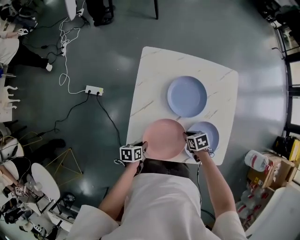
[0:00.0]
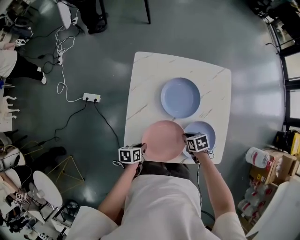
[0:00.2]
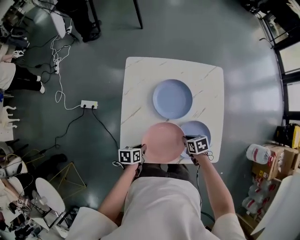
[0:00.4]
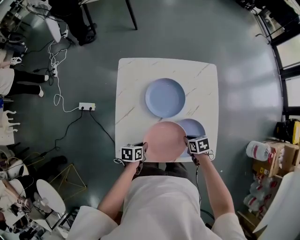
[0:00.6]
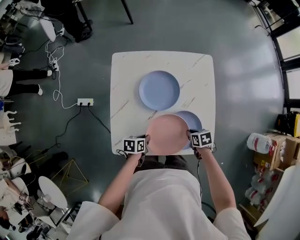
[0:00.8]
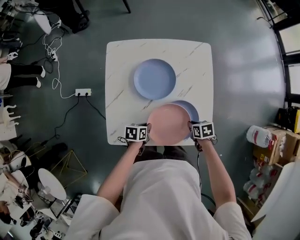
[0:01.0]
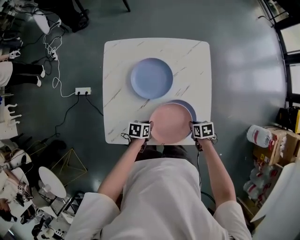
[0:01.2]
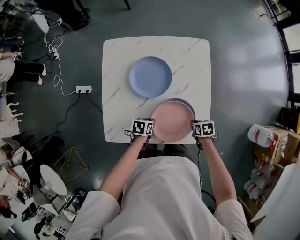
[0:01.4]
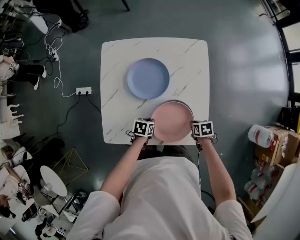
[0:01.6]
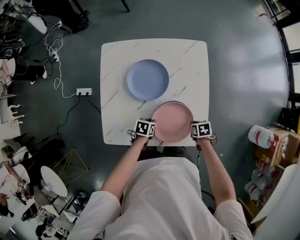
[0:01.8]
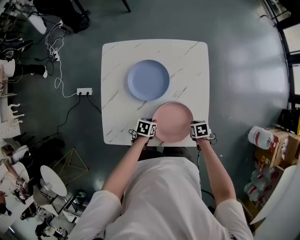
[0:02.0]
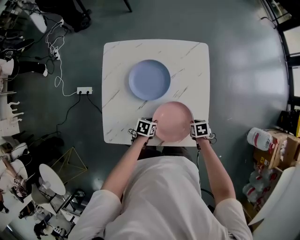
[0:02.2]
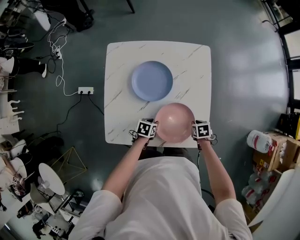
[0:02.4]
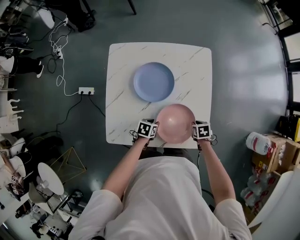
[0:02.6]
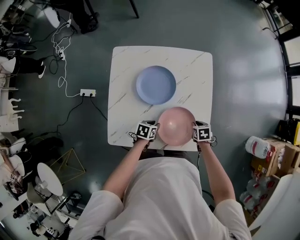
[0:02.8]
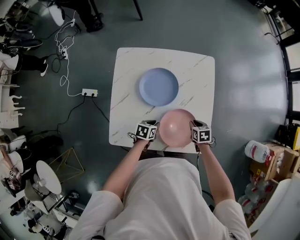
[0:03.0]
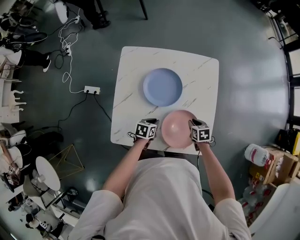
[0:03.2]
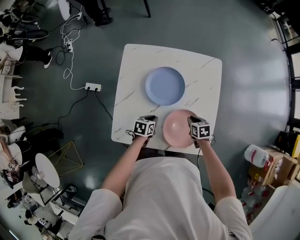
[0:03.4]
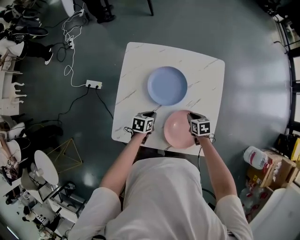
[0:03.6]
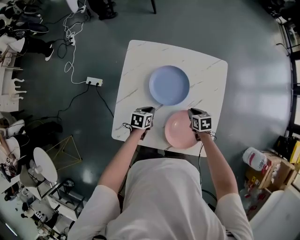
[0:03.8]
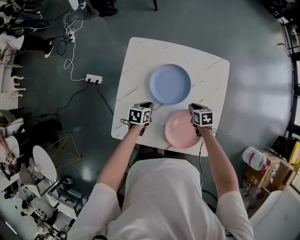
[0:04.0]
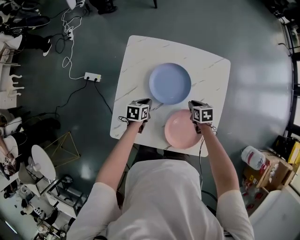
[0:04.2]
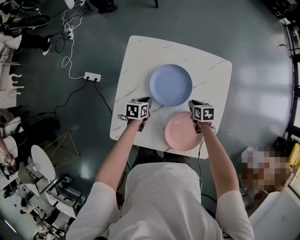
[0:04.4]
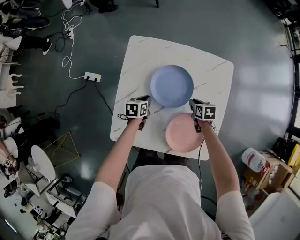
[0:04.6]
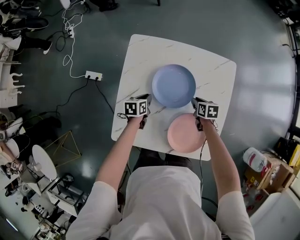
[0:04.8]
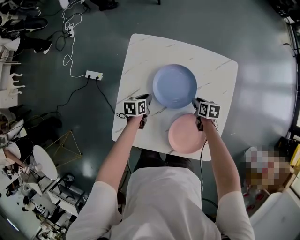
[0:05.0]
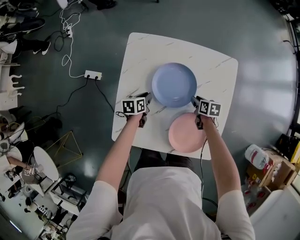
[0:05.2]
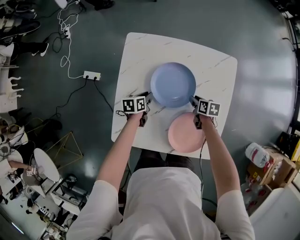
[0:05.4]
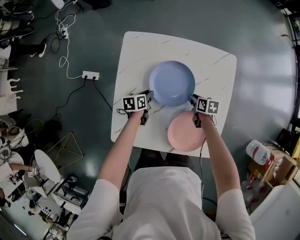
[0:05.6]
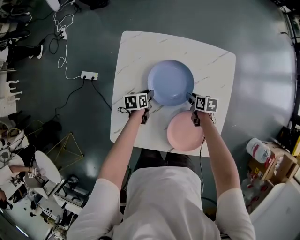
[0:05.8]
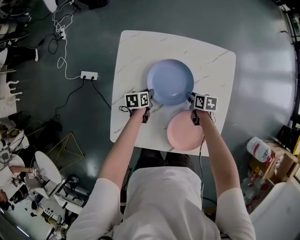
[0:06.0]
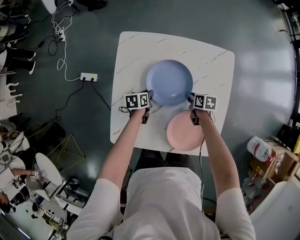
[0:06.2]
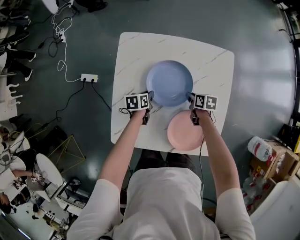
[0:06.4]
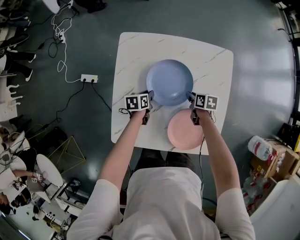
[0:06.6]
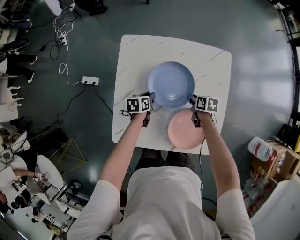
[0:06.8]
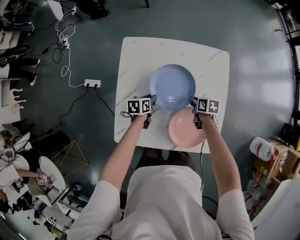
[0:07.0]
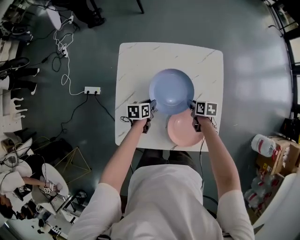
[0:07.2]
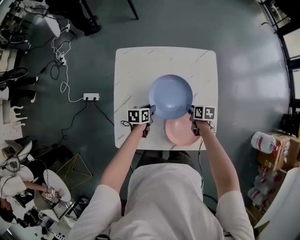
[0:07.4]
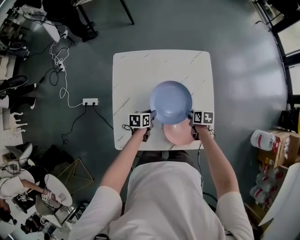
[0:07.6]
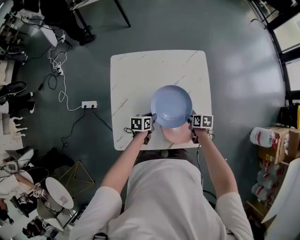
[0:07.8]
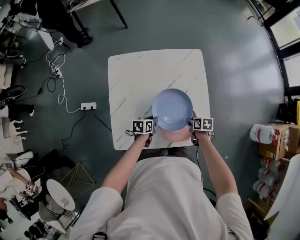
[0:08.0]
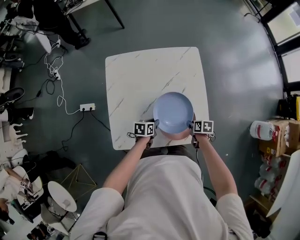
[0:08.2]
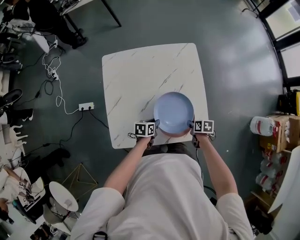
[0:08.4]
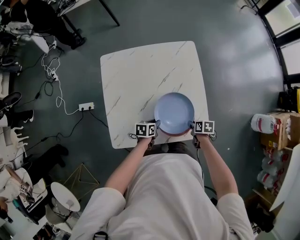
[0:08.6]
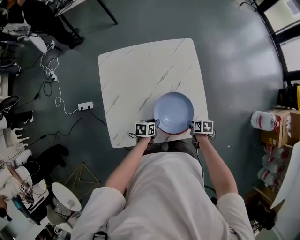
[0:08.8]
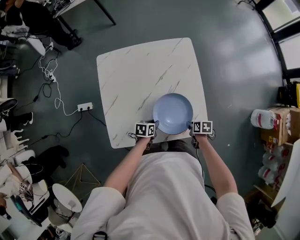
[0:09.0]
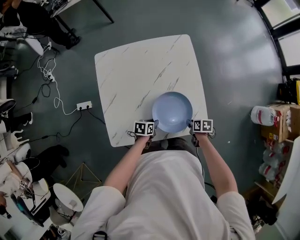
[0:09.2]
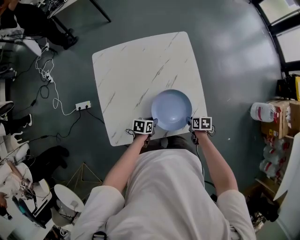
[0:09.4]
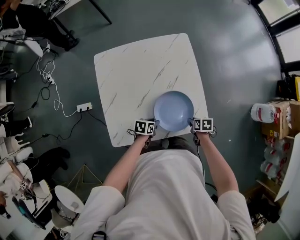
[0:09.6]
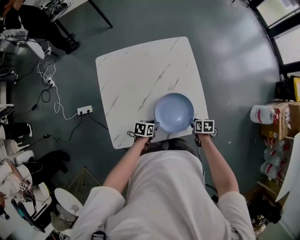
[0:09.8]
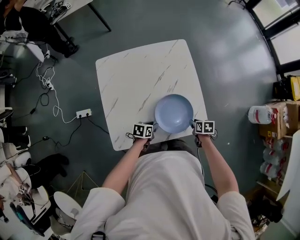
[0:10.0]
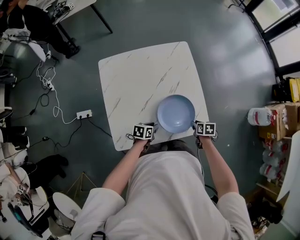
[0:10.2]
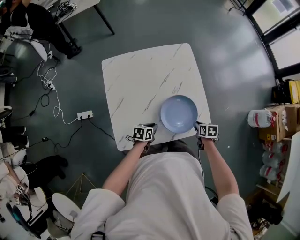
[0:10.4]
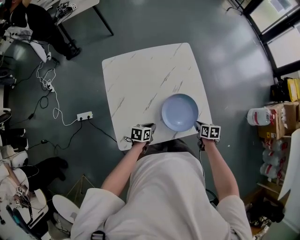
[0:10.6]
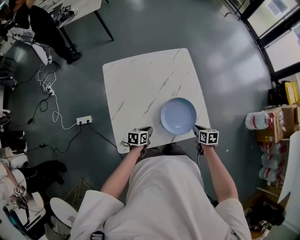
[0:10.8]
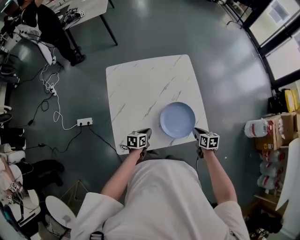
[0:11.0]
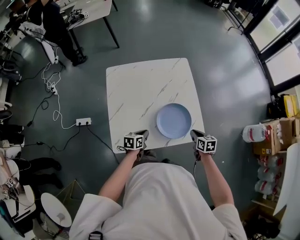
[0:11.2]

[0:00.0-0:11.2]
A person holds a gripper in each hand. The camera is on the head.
0:00.0 to 0:01.6: The right gripper ends up approximately 25 cm from where it was, while the left gripper moves approximately 25 cm, and turns by roughly 30 degrees.
0:01.6 to 0:03.2: The left gripper moves some 5 cm. The right gripper shifts by about 10 cm.
0:03.2 to 0:04.8: Both grippers travel together forward and to the left, about 15 cm.
0:04.8 to 0:06.4: The left gripper ends up roughly 5 cm from where it was.
0:06.4 to 0:08.0: The right gripper goes some 20 cm backward and to the right; the left gripper is displaced backward, to the right and upward by roughly 20 cm.
0:08.0 to 0:09.6: The left gripper shifts by approximately 10 cm; the right gripper shifts by roughly 10 cm.
0:09.6 to 0:11.2: The right gripper goes roughly 10 cm upward, rotates about 30 degrees, and closes up, while the left gripper travels upward, to the left and backward by some 10 cm, and closes its fingers.

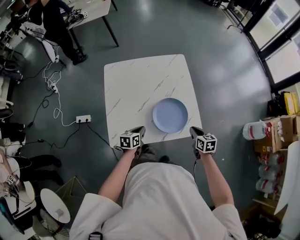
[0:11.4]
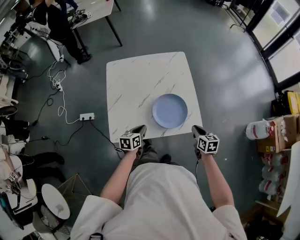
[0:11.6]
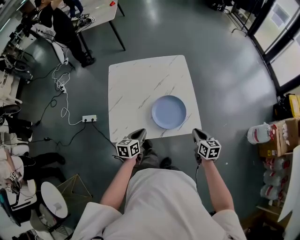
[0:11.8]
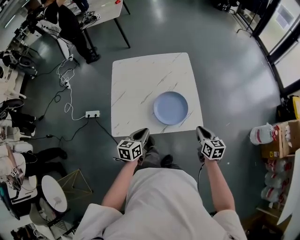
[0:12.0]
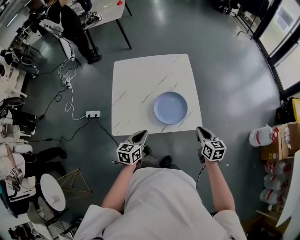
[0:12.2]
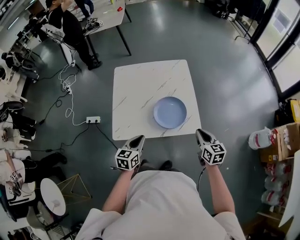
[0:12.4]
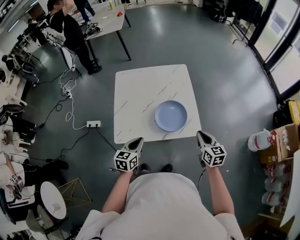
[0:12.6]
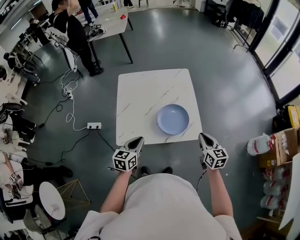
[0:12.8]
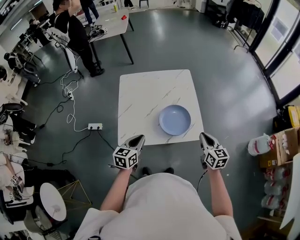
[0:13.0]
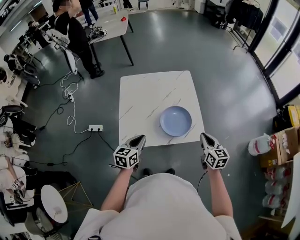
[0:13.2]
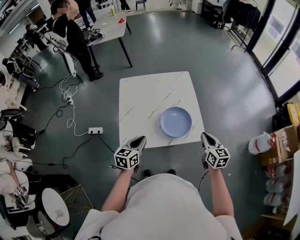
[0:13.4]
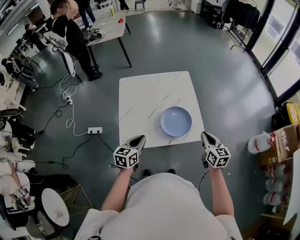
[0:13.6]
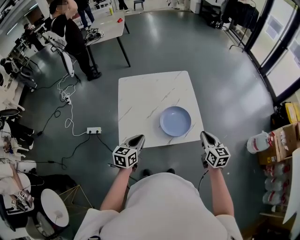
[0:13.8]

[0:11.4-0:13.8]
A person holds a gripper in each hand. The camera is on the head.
0:11.4 to 0:12.6: Both grippers travel together upward and backward, about 20 cm. The right gripper swivels approximately 20 degrees, while the left gripper rotates roughly 20 degrees.
0:12.6 to 0:13.8: The left gripper heads to the left, covering some 5 cm, while the right gripper ends up some 5 cm from where it was.

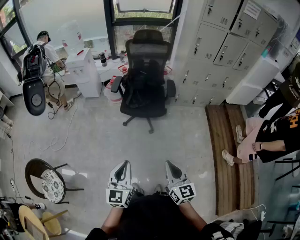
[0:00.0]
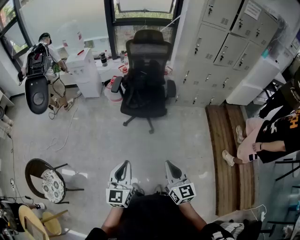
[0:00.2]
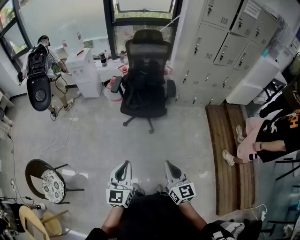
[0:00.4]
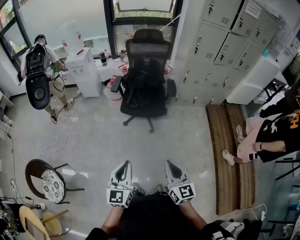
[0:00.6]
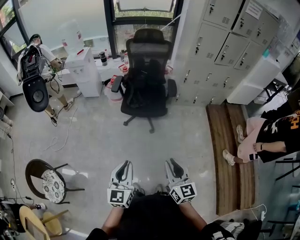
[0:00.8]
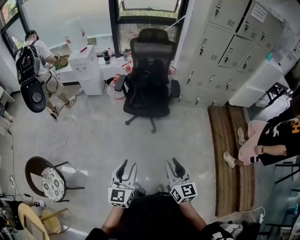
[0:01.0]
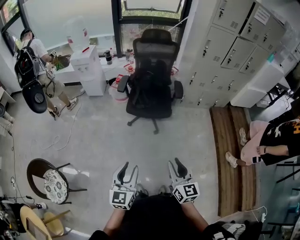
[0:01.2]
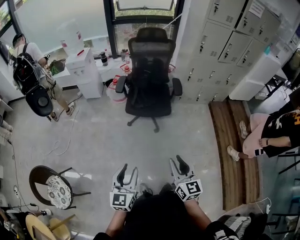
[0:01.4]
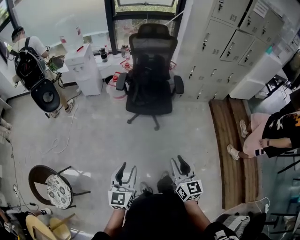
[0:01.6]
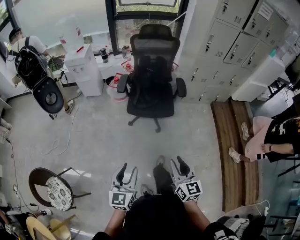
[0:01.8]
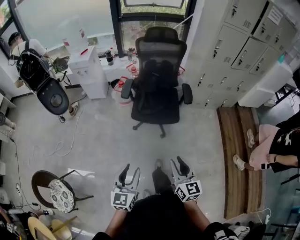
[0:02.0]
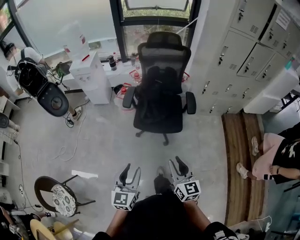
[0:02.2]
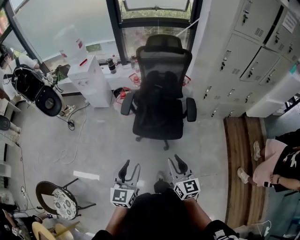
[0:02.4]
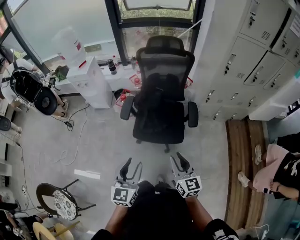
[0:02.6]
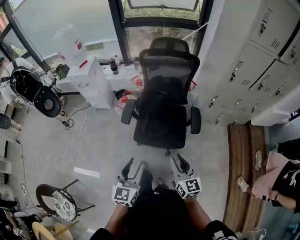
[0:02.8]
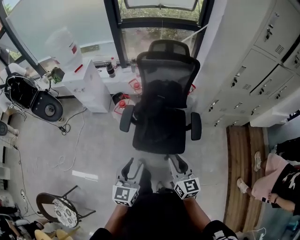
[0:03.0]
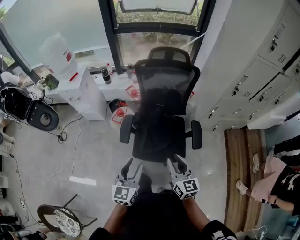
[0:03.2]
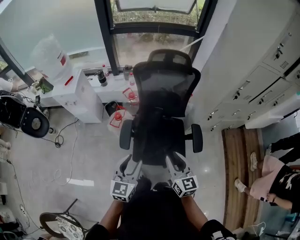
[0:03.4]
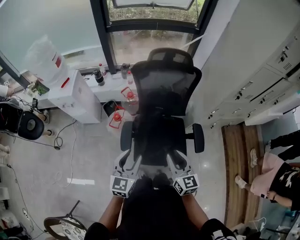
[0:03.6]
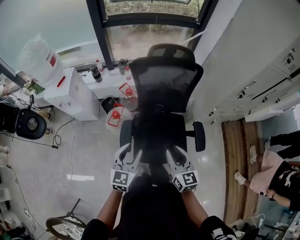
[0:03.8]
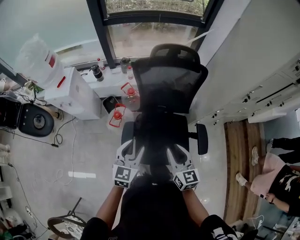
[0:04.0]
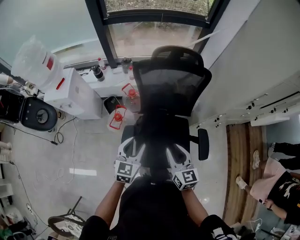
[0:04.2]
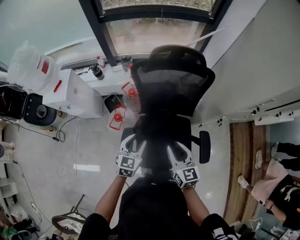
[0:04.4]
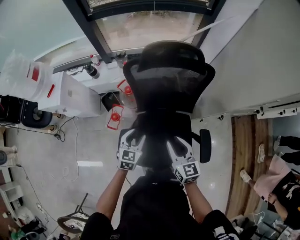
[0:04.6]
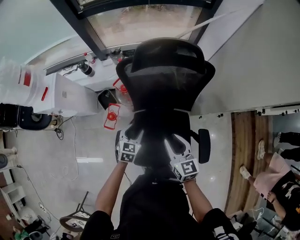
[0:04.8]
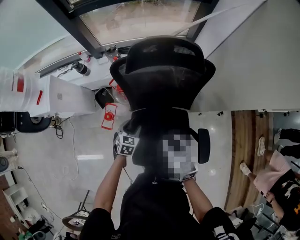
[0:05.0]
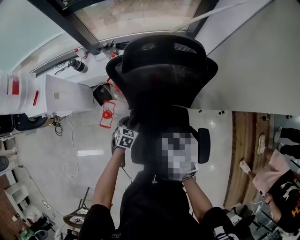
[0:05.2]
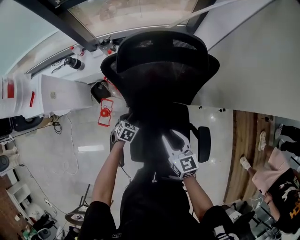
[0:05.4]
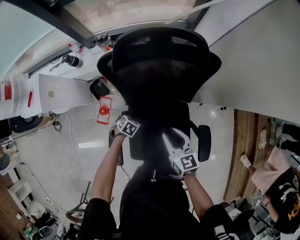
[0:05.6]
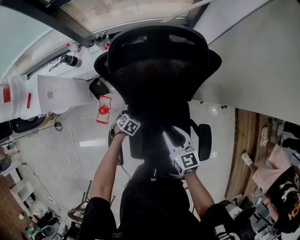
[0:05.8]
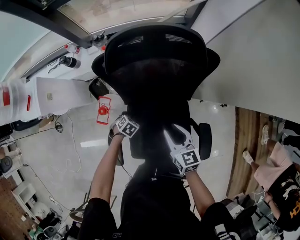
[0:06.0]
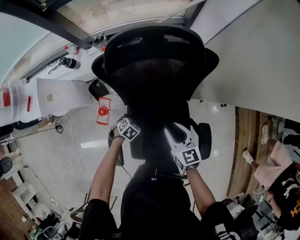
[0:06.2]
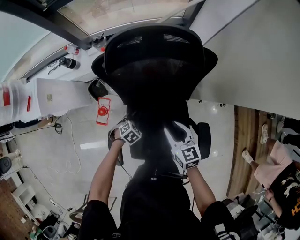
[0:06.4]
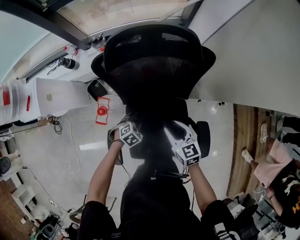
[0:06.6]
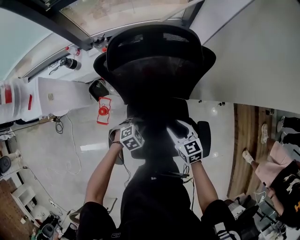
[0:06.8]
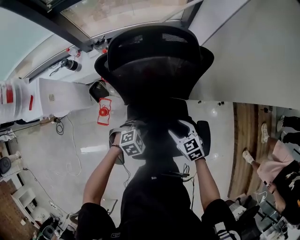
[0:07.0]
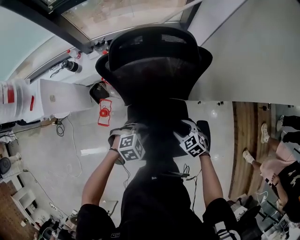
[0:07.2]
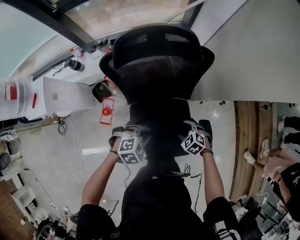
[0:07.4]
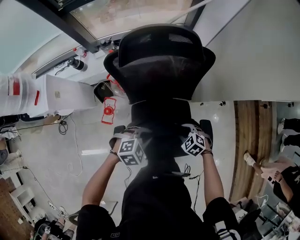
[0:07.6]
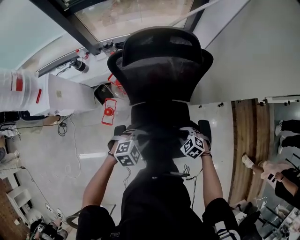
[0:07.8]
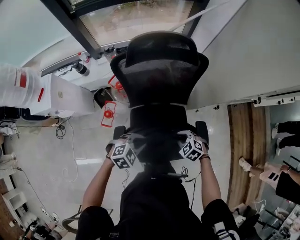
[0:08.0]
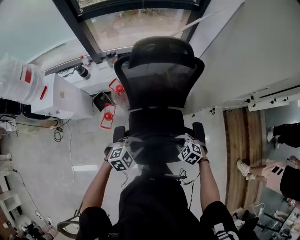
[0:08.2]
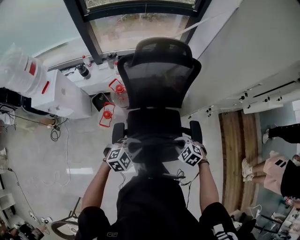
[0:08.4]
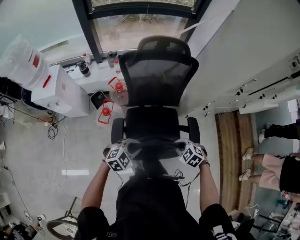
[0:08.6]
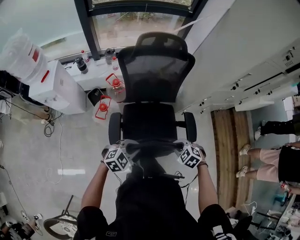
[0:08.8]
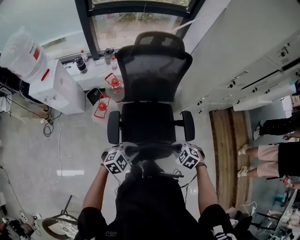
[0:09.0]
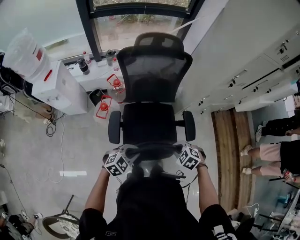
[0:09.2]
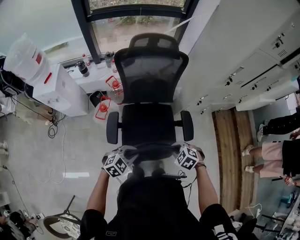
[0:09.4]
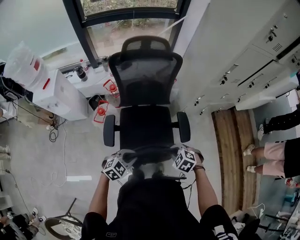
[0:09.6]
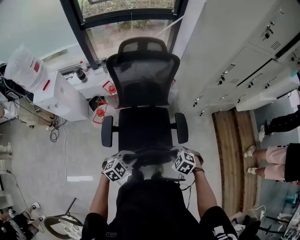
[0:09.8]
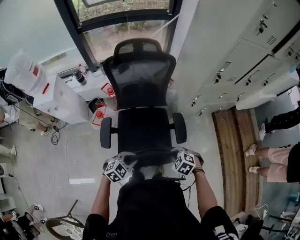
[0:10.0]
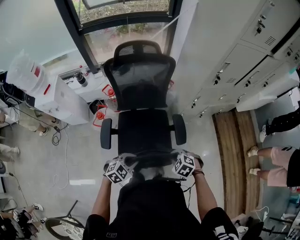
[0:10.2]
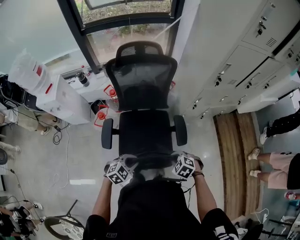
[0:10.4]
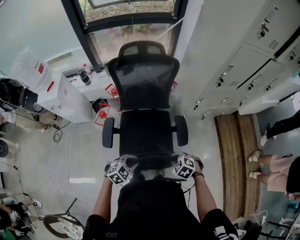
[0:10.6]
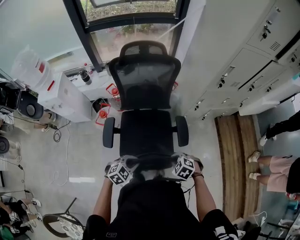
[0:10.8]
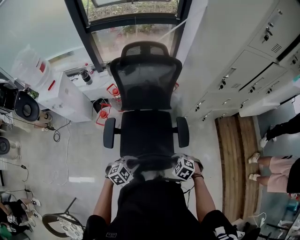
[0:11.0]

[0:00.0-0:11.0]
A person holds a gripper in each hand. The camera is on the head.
0:00.0 to 0:01.6: Both grippers travel together to the left, roughly 5 cm. The left gripper opens its fingers; the right gripper opens up.
0:01.6 to 0:03.2: The pair of grippers is taken forward, approximately 50 cm.
0:03.2 to 0:04.8: The left gripper heads forward and downward, covering approximately 40 cm, and swivels roughly 30 degrees; the right gripper is displaced forward by some 30 cm.
0:04.8 to 0:06.2: The right gripper is displaced downward by about 10 cm; the left gripper shifts roughly 20 cm downward, tips its fingers downward by about 30 degrees, and closes its fingers.
0:06.2 to 0:07.8: The right gripper ends up roughly 15 cm from where it was, tilts its fingers roughly 30 degrees downward, and opens, then closes once more; the left gripper heads upward, covering approximately 20 cm, and changes its angle by approximately 40 degrees.
0:07.8 to 0:09.4: The left gripper shifts by approximately 20 cm, while the right gripper changes place by about 25 cm.
0:09.4 to 0:11.0: The two grippers go some 5 cm to the right.
